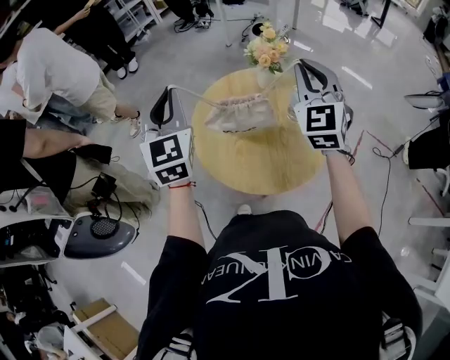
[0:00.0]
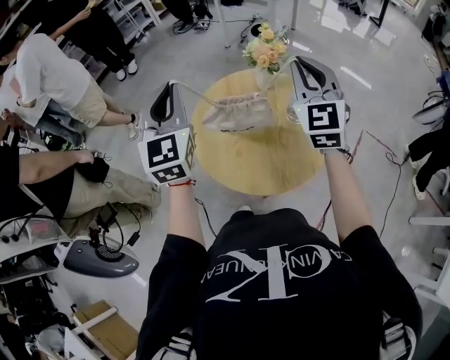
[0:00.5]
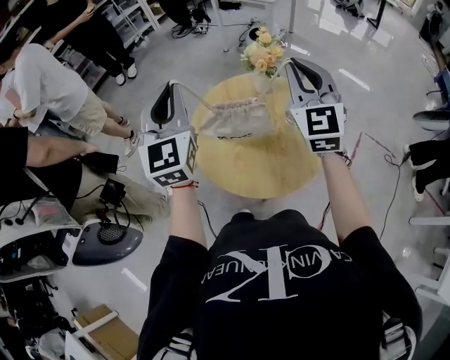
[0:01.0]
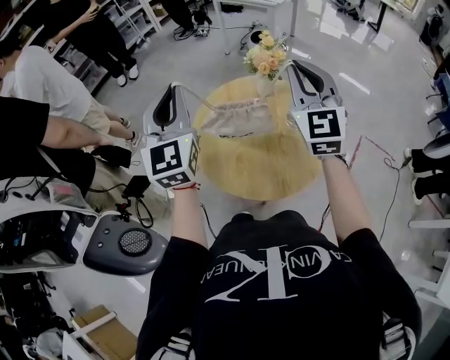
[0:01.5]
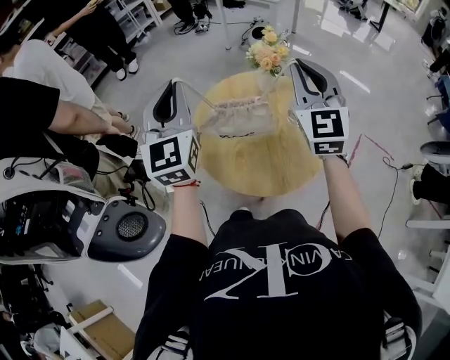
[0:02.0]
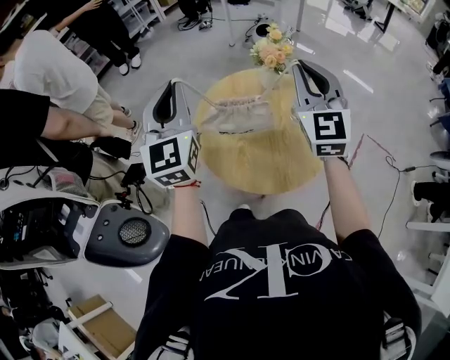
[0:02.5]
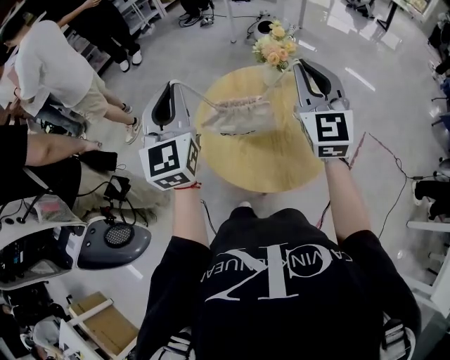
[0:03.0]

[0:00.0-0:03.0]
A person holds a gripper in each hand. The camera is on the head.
0:00.0 to 0:03.0: There are only small adjustments of the grippers.

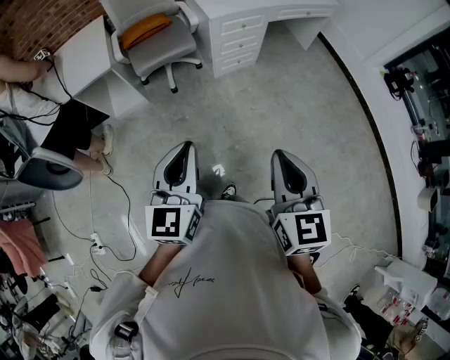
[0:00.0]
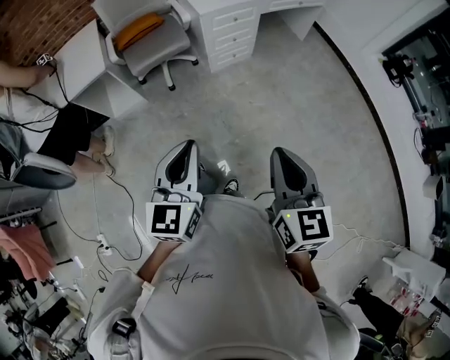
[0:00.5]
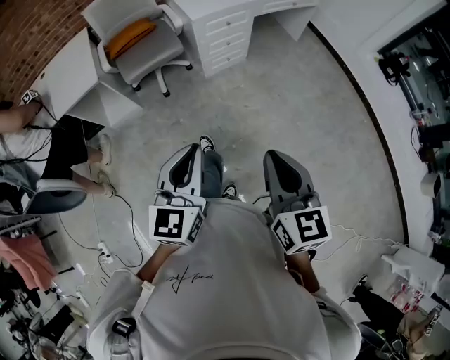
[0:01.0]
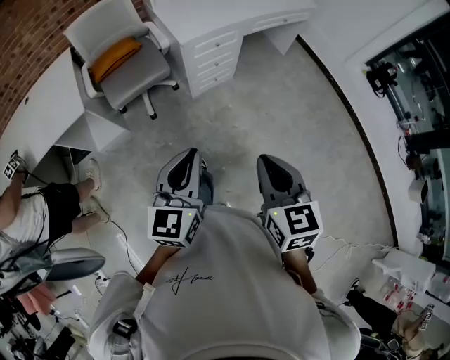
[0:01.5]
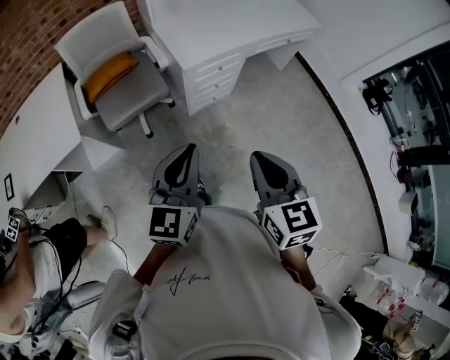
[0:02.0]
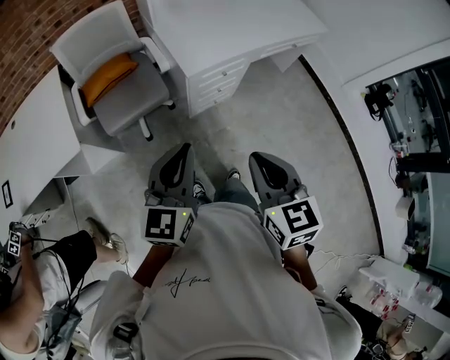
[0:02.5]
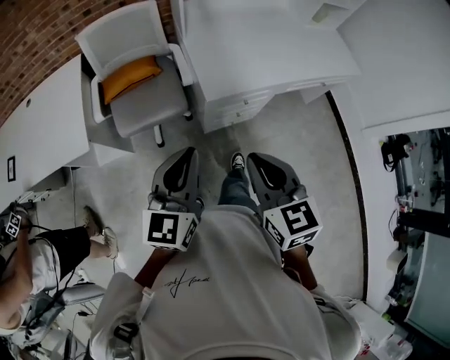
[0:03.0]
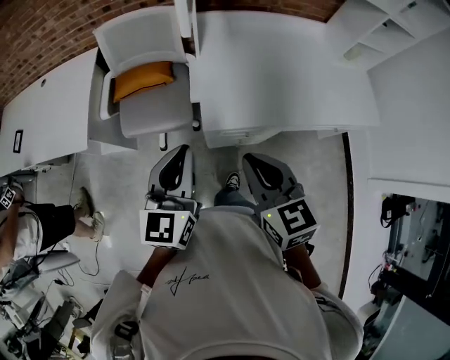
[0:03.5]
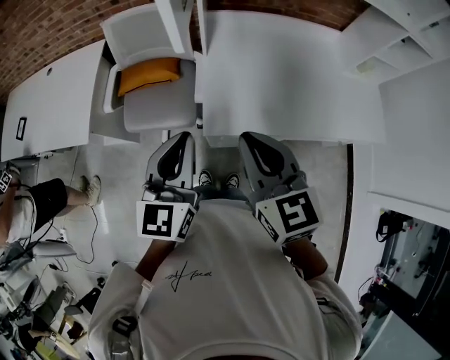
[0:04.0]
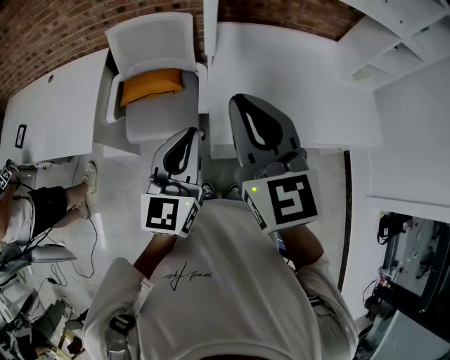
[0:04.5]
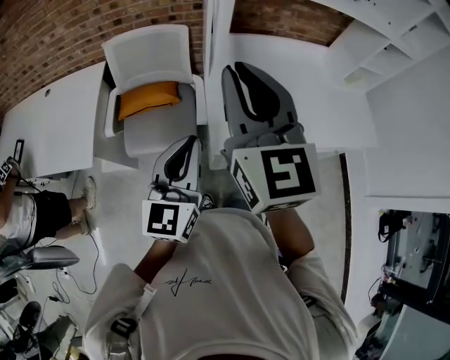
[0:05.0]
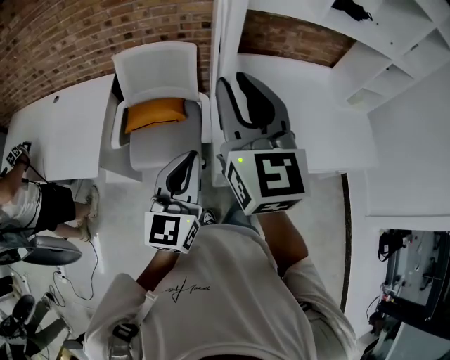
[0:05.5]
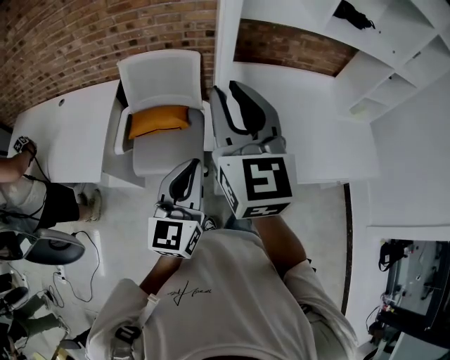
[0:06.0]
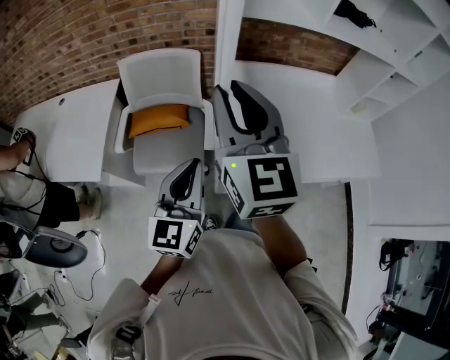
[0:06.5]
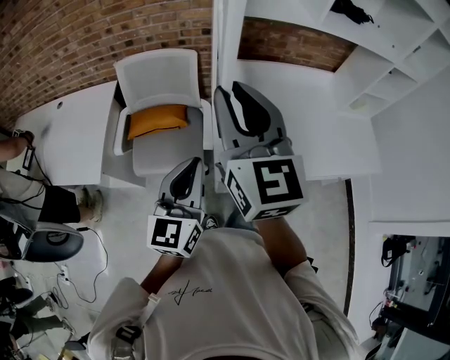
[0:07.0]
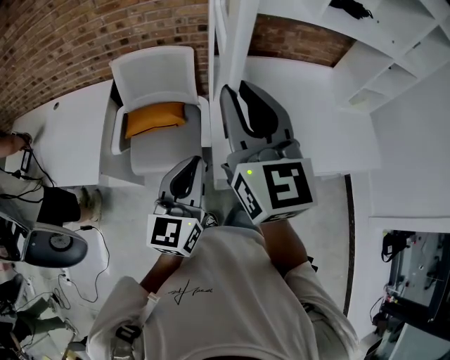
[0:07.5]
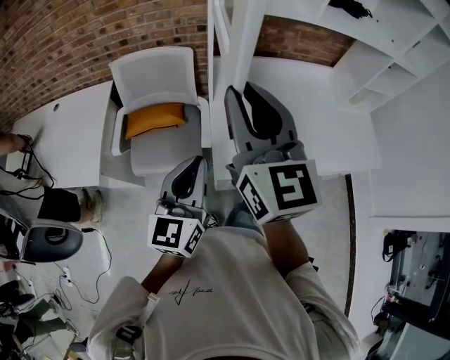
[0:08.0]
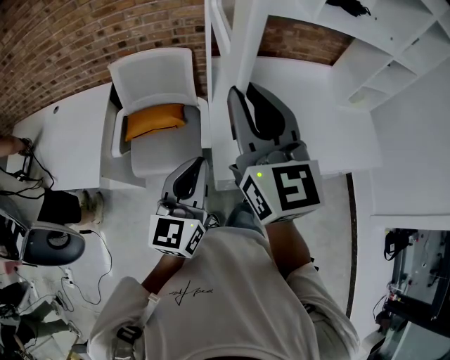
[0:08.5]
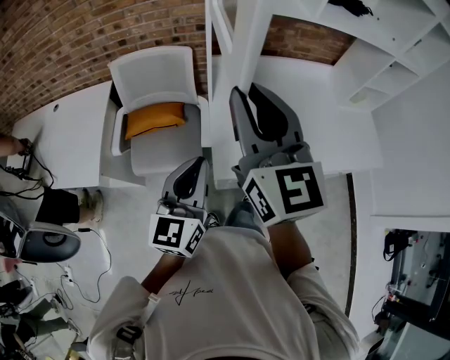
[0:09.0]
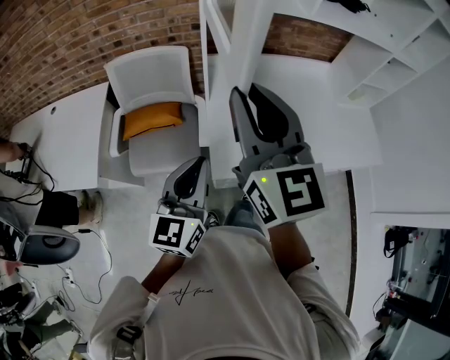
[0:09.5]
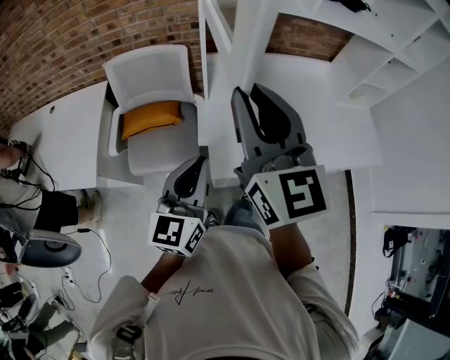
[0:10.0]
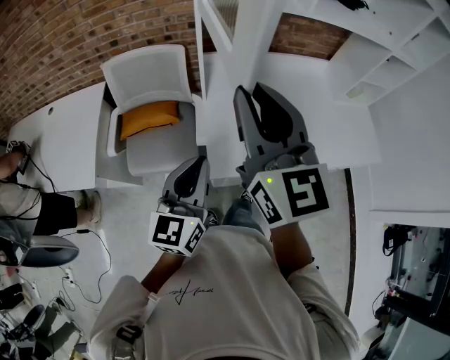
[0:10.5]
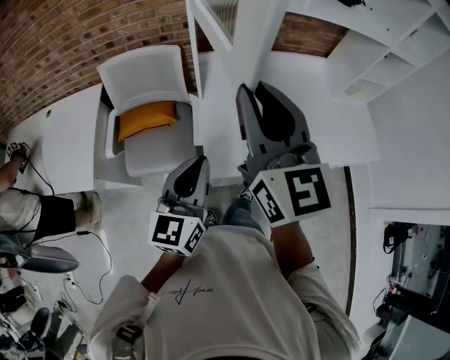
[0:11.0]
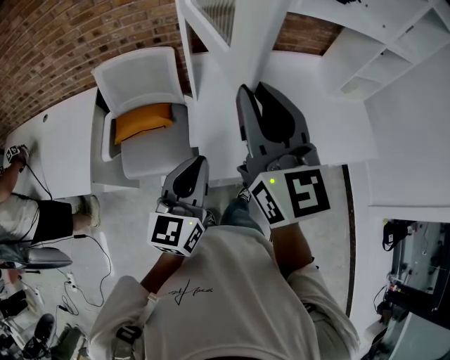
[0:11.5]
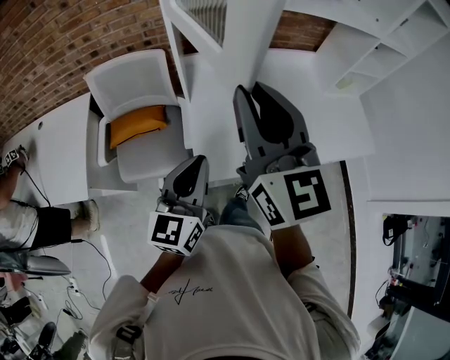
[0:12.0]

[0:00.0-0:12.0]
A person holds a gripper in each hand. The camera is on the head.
0:00.0 to 0:02.0: Both grippers travel together forward, some 30 cm.
0:02.0 to 0:04.0: The left gripper moves roughly 35 cm, and turns by some 30 degrees. Meanwhile the right gripper changes place by roughly 40 cm, and turns by roughly 40 degrees.
0:04.0 to 0:06.0: The right gripper is displaced upward, forward and to the left by some 20 cm, and swivels about 20 degrees; the left gripper changes place by about 5 cm.
0:06.0 to 0:10.0: The grippers move only a little.
0:10.0 to 0:12.0: The grippers both shift to the right by roughly 5 cm.

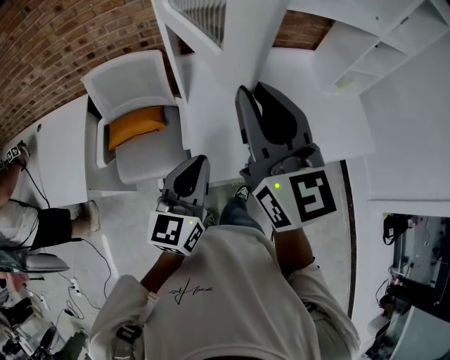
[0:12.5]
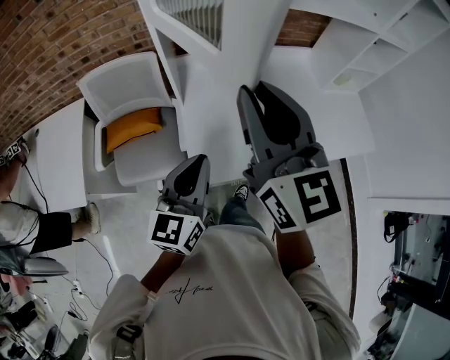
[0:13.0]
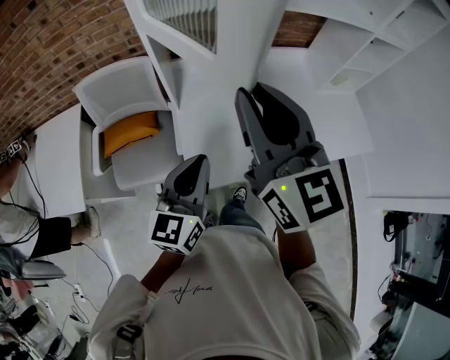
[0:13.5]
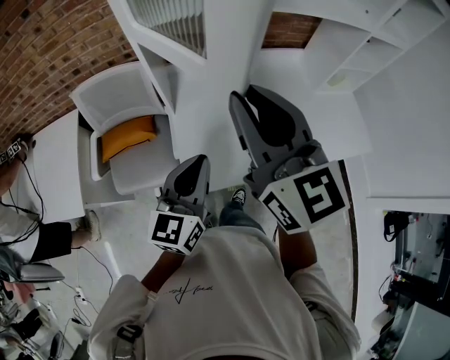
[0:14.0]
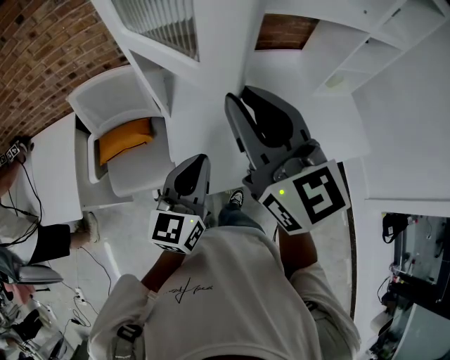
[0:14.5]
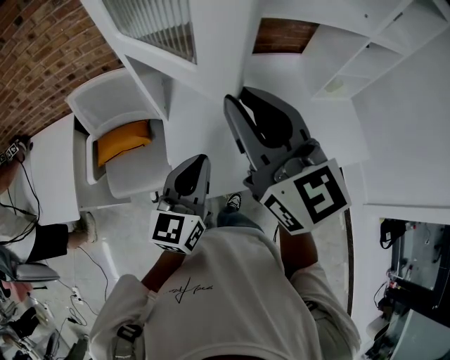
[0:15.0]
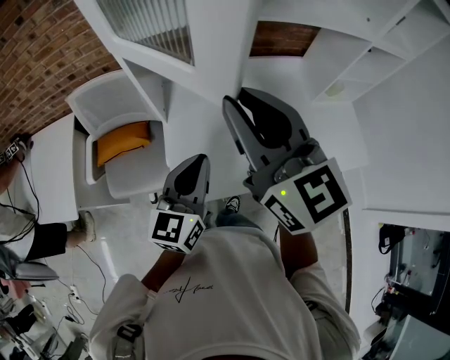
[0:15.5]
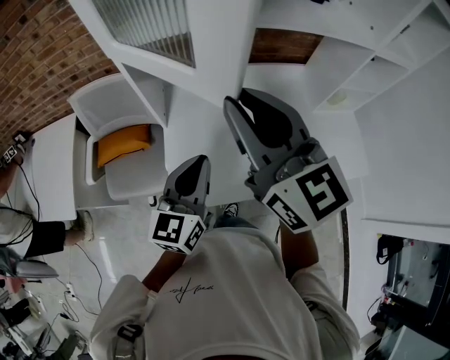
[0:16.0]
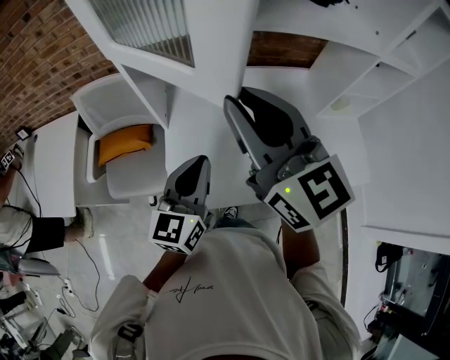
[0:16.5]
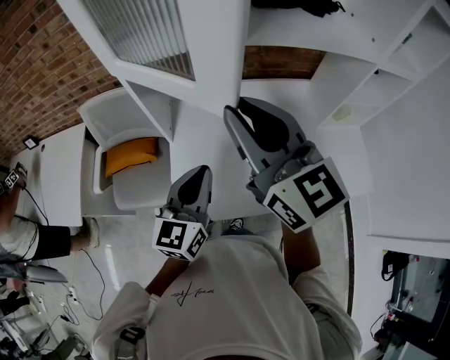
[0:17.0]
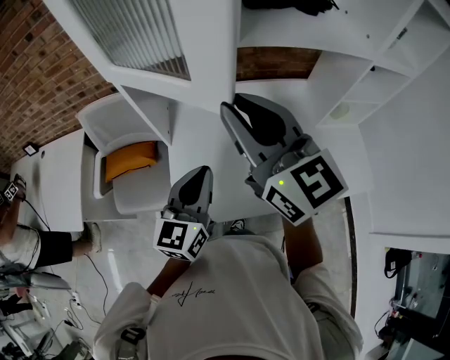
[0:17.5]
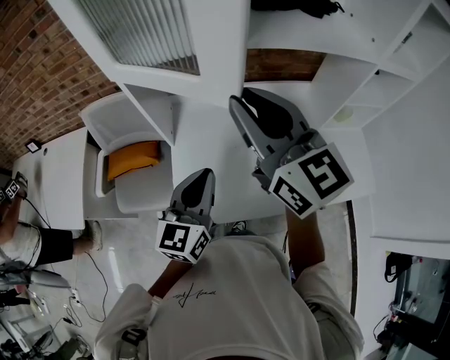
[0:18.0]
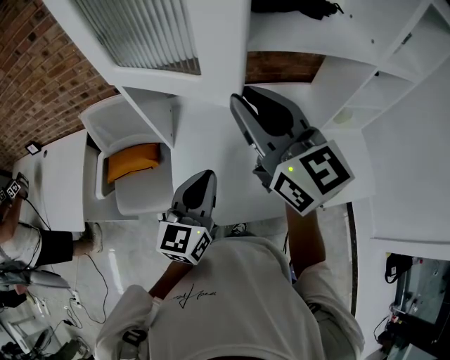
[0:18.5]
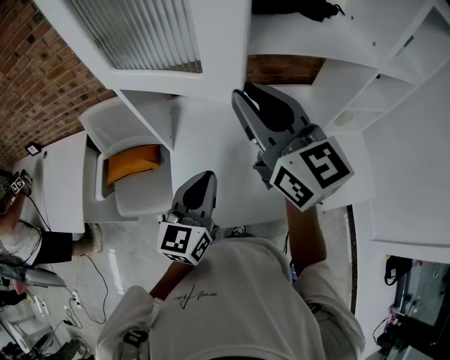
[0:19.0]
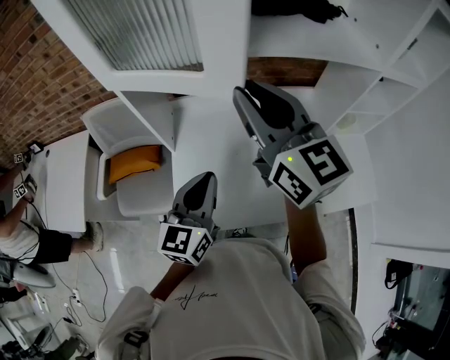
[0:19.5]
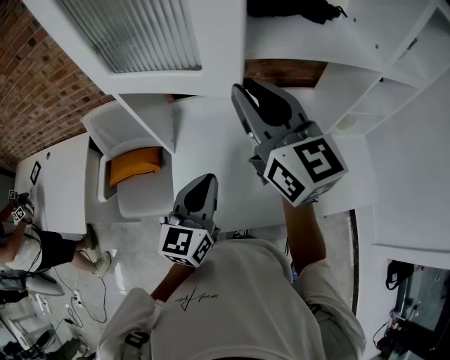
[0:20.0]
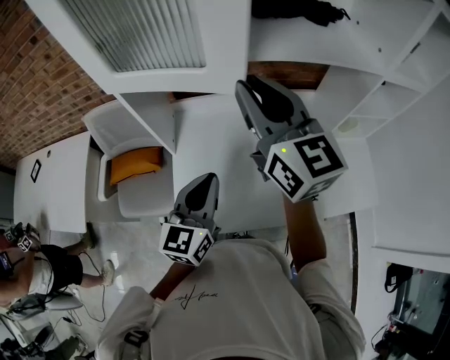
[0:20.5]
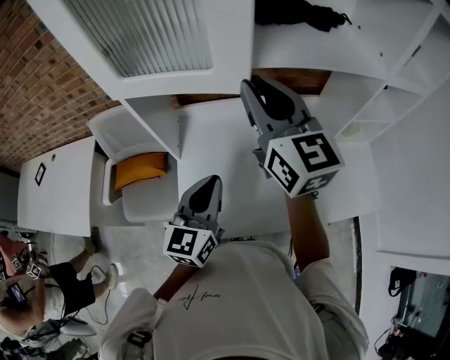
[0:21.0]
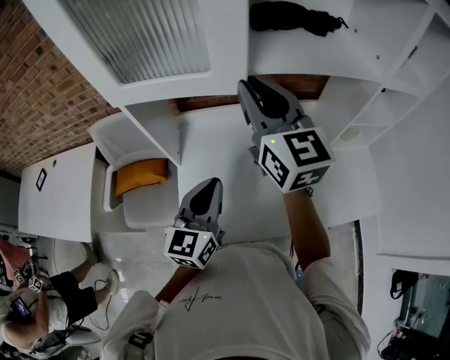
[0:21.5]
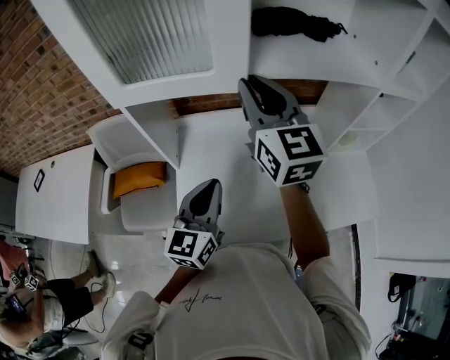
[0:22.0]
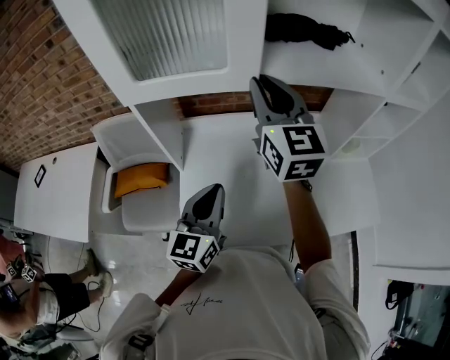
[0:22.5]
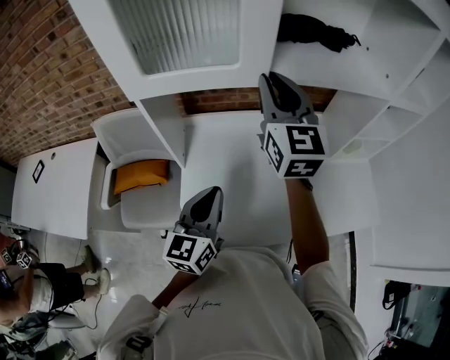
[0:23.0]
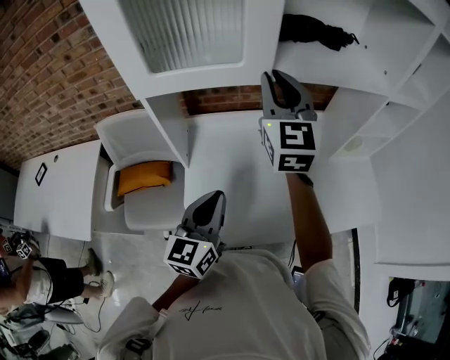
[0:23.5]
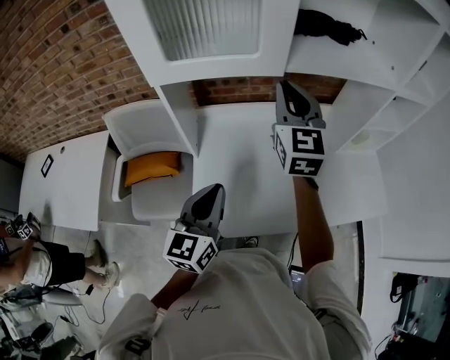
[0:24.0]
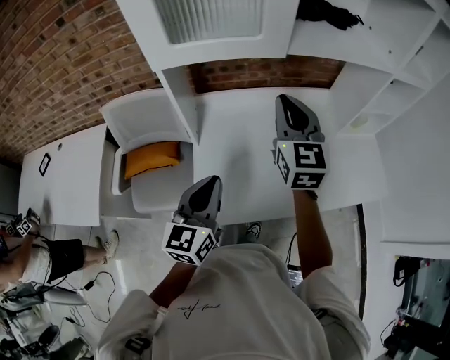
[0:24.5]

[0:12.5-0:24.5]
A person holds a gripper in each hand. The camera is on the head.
0:12.5 to 0:14.5: The left gripper heads to the right and forward, covering roughly 10 cm. The right gripper changes place by some 5 cm.
0:14.5 to 0:16.5: The right gripper shifts by roughly 5 cm. Meanwhile the left gripper shifts by roughly 5 cm.
0:16.5 to 0:18.5: The right gripper moves approximately 5 cm.
0:18.5 to 0:20.5: The right gripper is displaced forward by approximately 5 cm.
0:20.5 to 0:22.5: The right gripper shifts approximately 5 cm forward.
0:22.5 to 0:24.5: The right gripper moves downward and backward, approximately 10 cm; the left gripper heads to the left and backward, covering roughly 10 cm.
